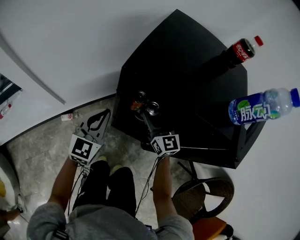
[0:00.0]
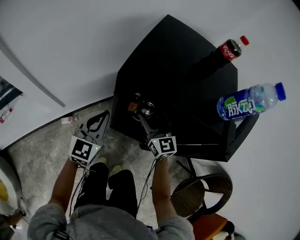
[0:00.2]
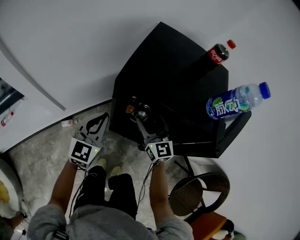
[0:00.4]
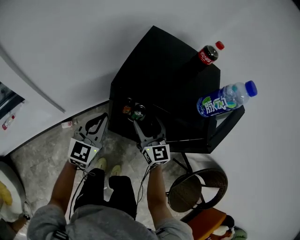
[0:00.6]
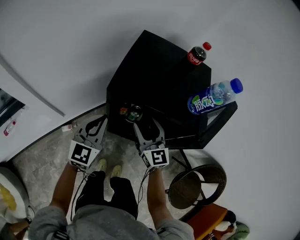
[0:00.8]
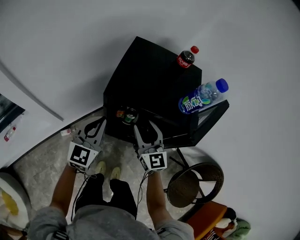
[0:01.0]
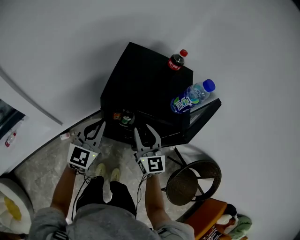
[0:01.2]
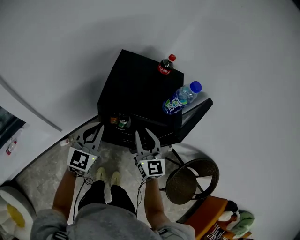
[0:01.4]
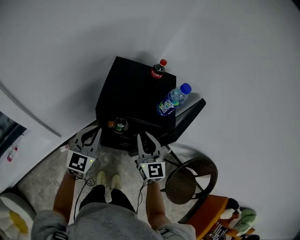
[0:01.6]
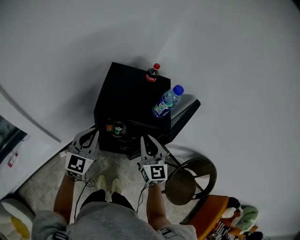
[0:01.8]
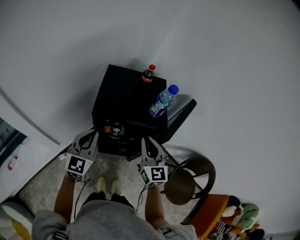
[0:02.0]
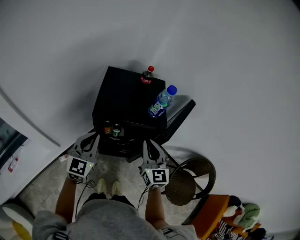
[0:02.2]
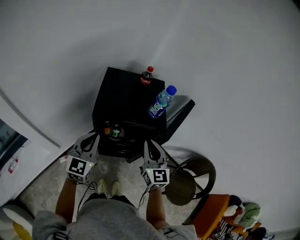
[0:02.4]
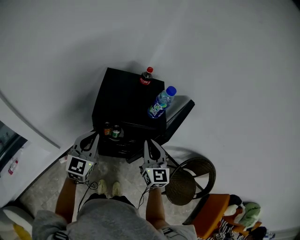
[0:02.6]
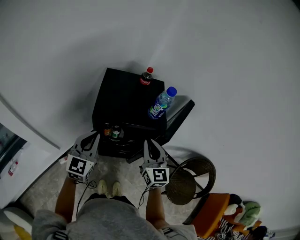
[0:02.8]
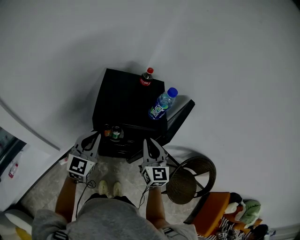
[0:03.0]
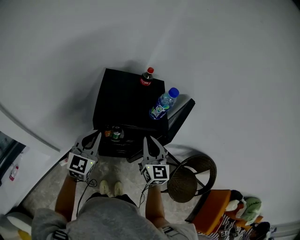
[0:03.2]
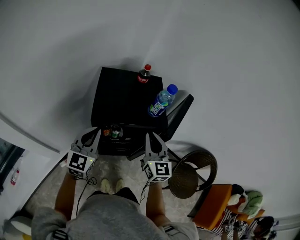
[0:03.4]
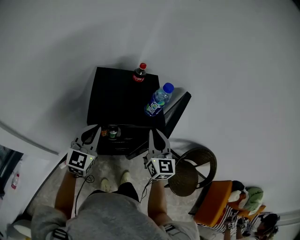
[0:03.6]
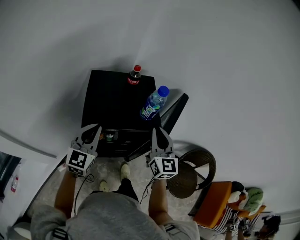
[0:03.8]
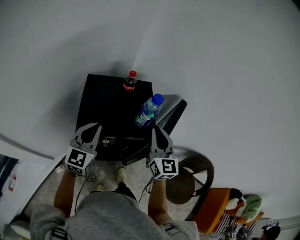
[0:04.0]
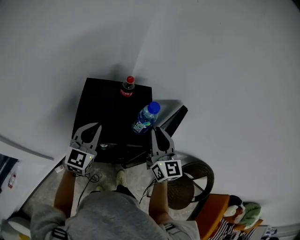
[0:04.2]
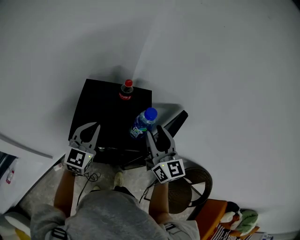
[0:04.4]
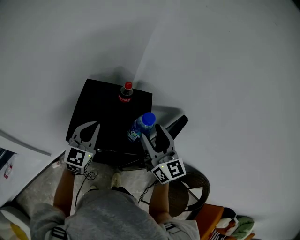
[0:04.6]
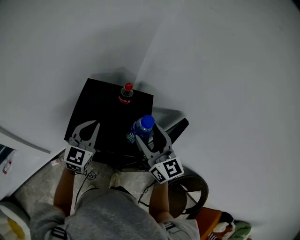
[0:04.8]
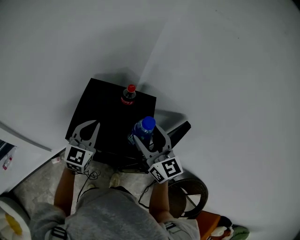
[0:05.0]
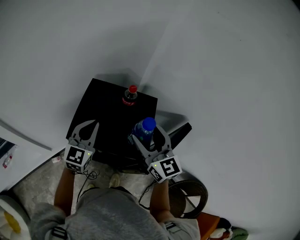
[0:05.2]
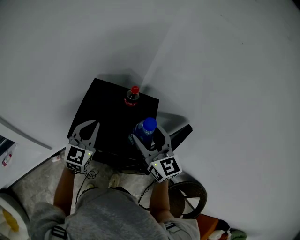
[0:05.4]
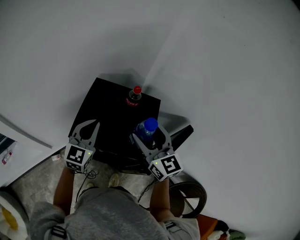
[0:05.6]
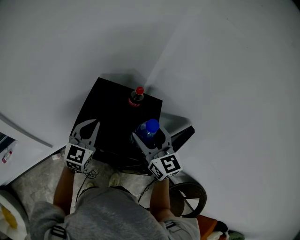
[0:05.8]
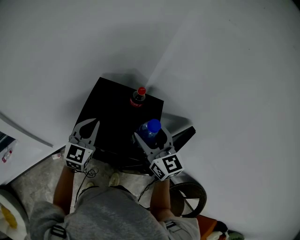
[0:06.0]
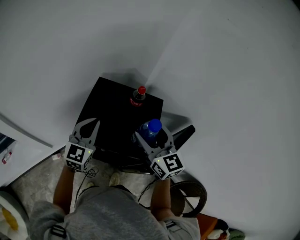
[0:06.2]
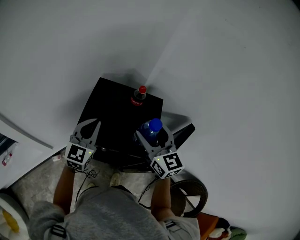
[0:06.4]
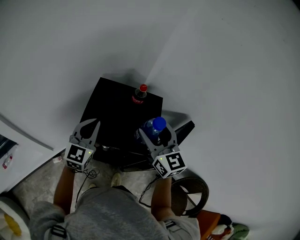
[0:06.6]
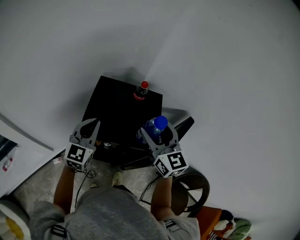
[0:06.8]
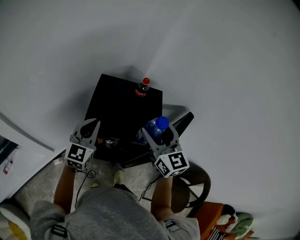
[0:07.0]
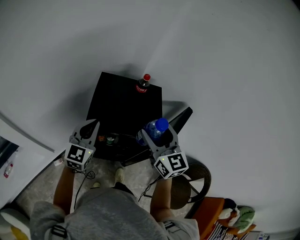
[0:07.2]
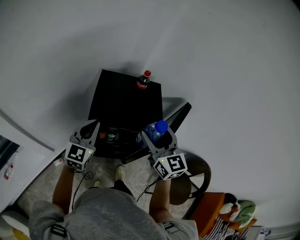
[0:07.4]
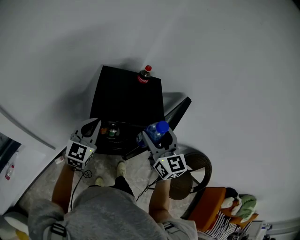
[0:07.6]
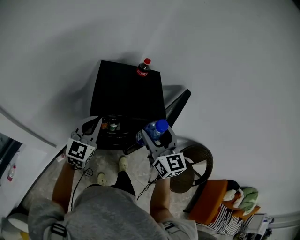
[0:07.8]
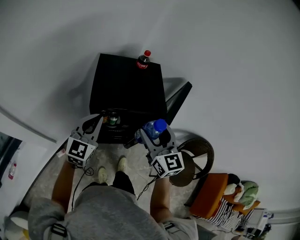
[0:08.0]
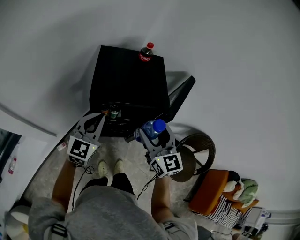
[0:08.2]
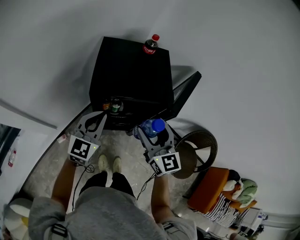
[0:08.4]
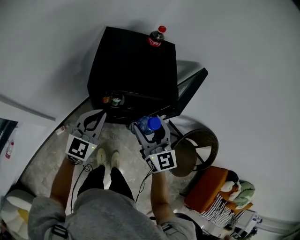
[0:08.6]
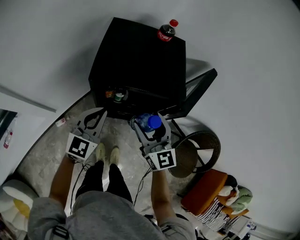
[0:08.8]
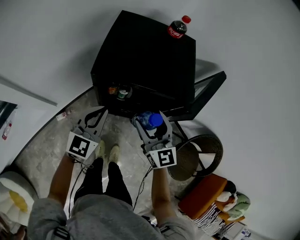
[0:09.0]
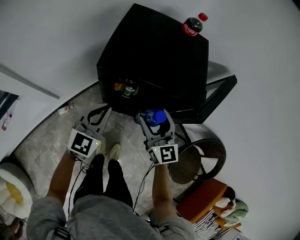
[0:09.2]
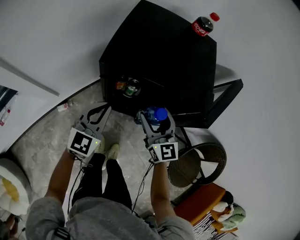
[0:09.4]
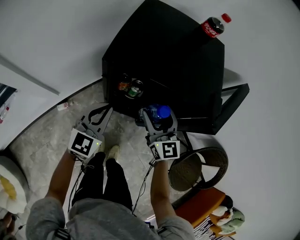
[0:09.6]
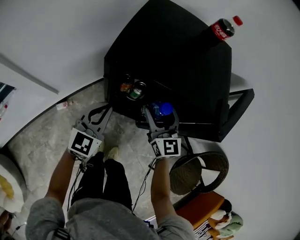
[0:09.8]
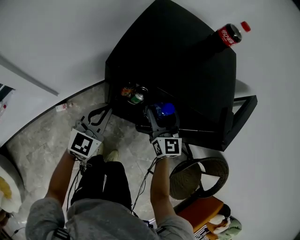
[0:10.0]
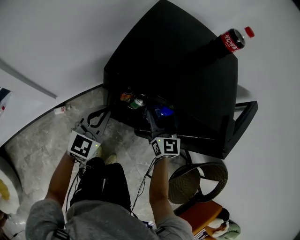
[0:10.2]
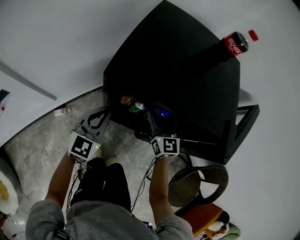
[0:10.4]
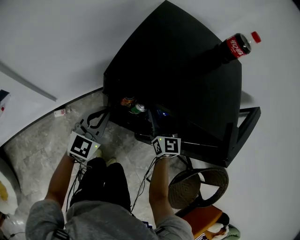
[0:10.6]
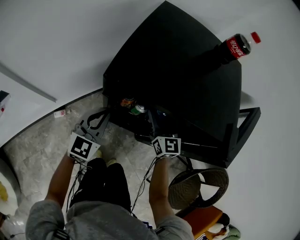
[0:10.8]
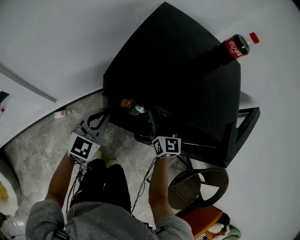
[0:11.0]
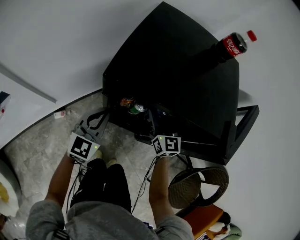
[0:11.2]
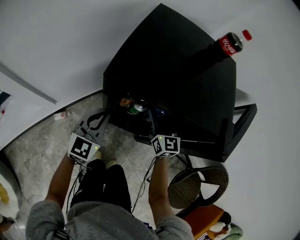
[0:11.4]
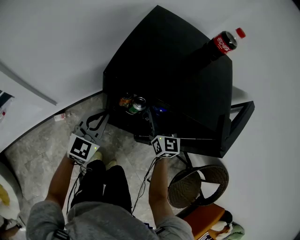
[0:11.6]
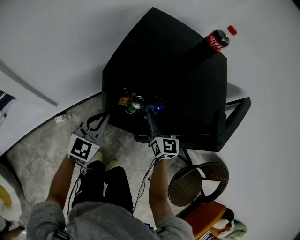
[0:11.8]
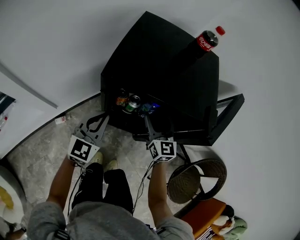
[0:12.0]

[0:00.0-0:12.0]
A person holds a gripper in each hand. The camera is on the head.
0:00.0 to 0:01.6: The right gripper travels upward and backward by about 30 cm, rotates some 20 degrees, and closes; the left gripper moves upward, some 25 cm.
0:01.6 to 0:03.0: The right gripper moves roughly 5 cm.
0:03.0 to 0:04.4: The left gripper heads forward and to the right, covering about 15 cm. Meanwhile the right gripper heads forward, upward and to the right, covering about 20 cm, and opens its fingers.
0:04.4 to 0:06.0: The right gripper travels to the left and forward by approximately 10 cm, turns by some 20 degrees, and opens its fingers.
0:06.0 to 0:07.6: The left gripper is displaced backward and to the left by about 15 cm, while the right gripper shifts roughly 15 cm backward.
0:07.6 to 0:09.0: The left gripper travels downward and backward by about 15 cm. The right gripper heads downward, covering roughly 20 cm.
0:09.0 to 0:10.4: The left gripper goes roughly 15 cm downward; the right gripper shifts some 25 cm downward and forward.
0:10.4 to 0:12.0: The left gripper heads upward, covering some 5 cm. Meanwhile the right gripper shifts by about 5 cm.

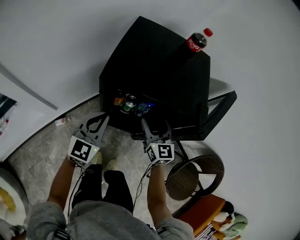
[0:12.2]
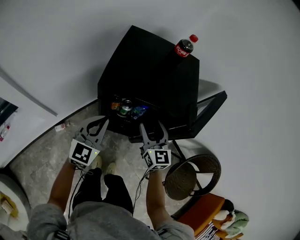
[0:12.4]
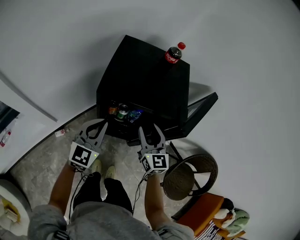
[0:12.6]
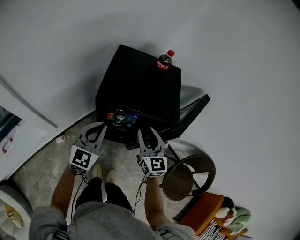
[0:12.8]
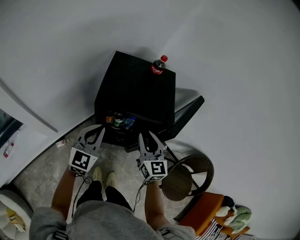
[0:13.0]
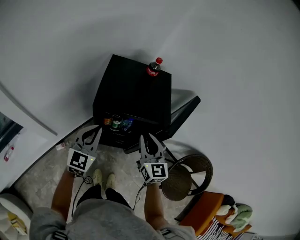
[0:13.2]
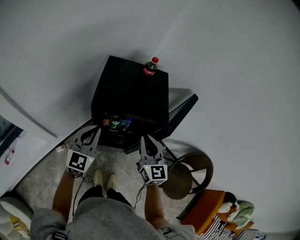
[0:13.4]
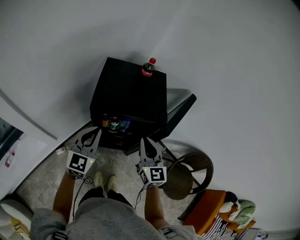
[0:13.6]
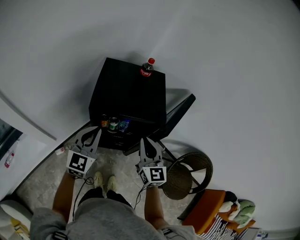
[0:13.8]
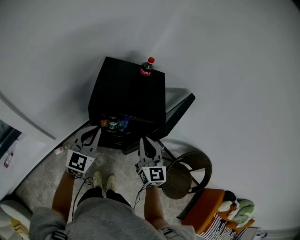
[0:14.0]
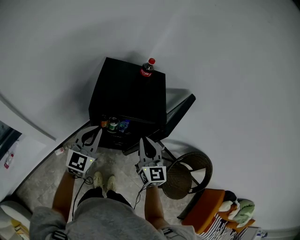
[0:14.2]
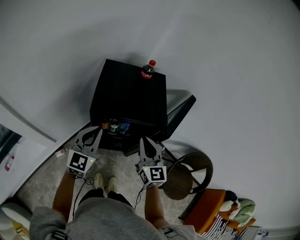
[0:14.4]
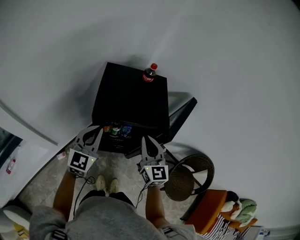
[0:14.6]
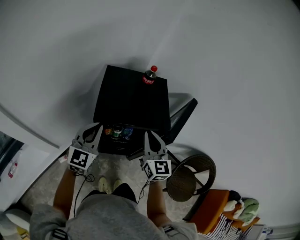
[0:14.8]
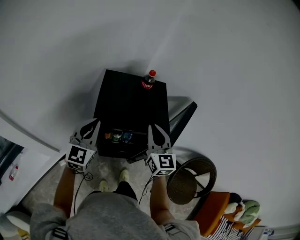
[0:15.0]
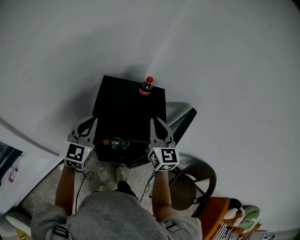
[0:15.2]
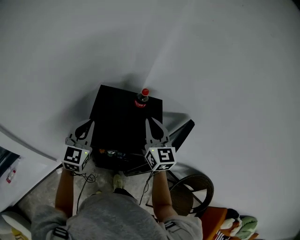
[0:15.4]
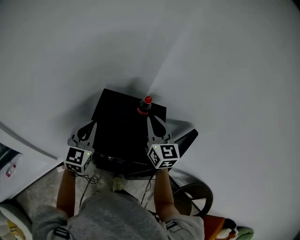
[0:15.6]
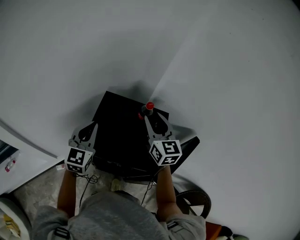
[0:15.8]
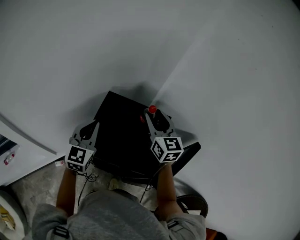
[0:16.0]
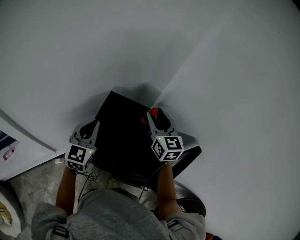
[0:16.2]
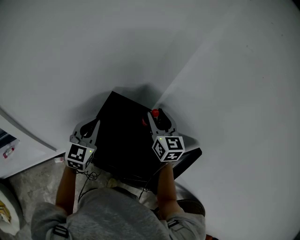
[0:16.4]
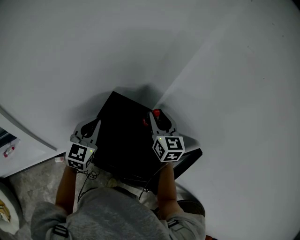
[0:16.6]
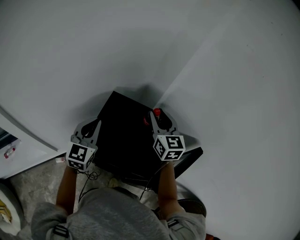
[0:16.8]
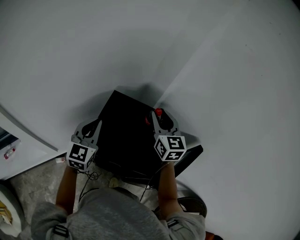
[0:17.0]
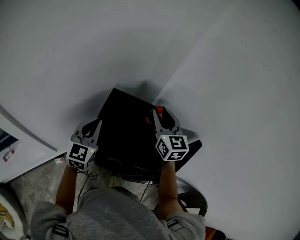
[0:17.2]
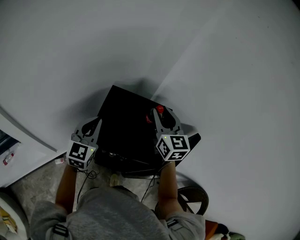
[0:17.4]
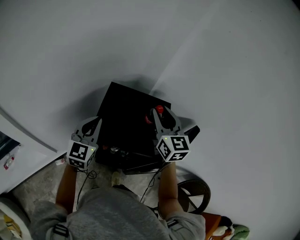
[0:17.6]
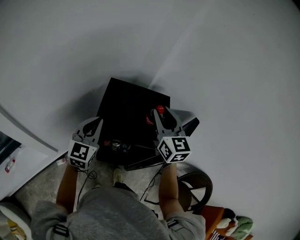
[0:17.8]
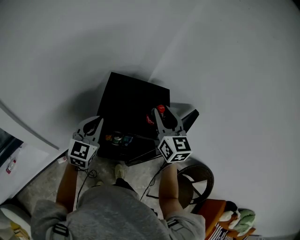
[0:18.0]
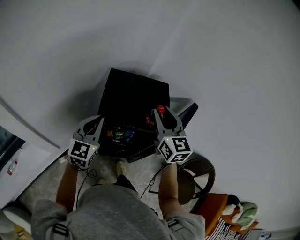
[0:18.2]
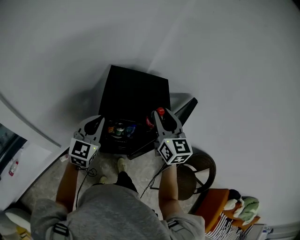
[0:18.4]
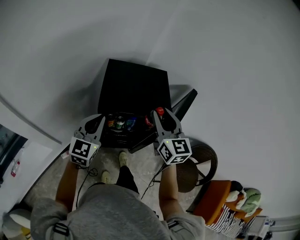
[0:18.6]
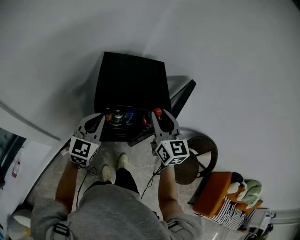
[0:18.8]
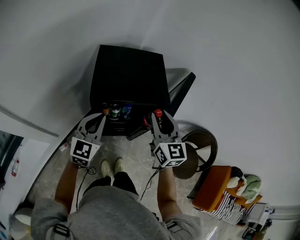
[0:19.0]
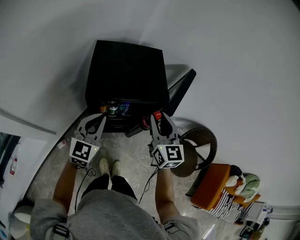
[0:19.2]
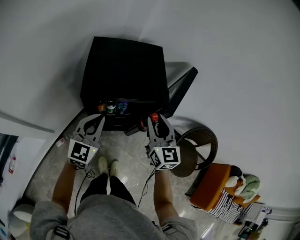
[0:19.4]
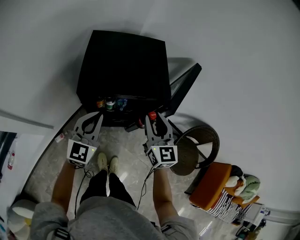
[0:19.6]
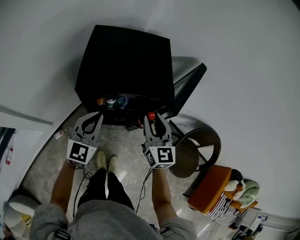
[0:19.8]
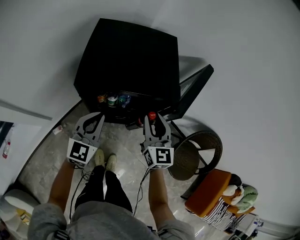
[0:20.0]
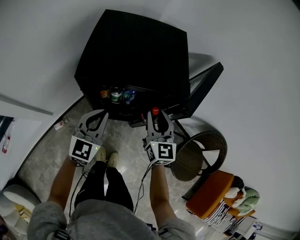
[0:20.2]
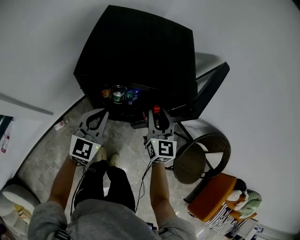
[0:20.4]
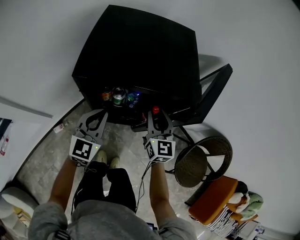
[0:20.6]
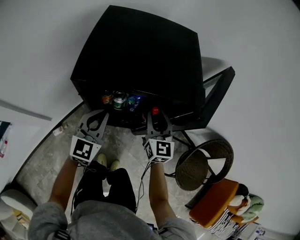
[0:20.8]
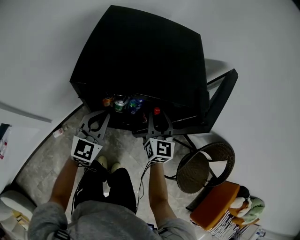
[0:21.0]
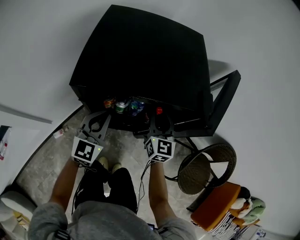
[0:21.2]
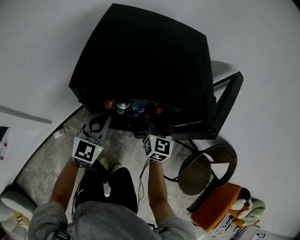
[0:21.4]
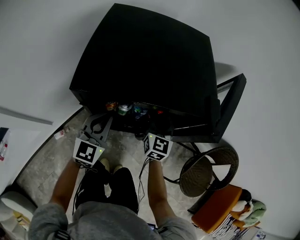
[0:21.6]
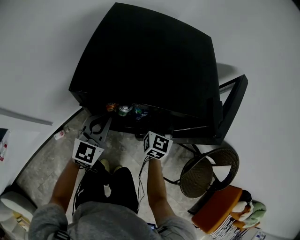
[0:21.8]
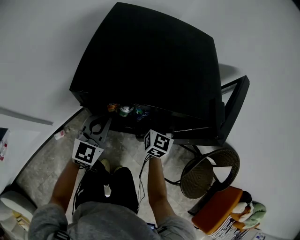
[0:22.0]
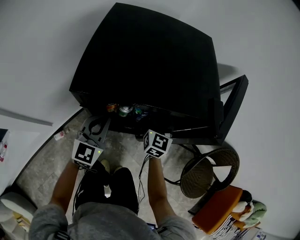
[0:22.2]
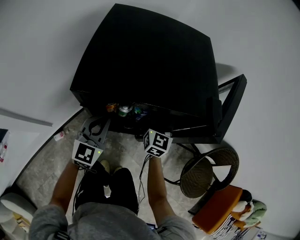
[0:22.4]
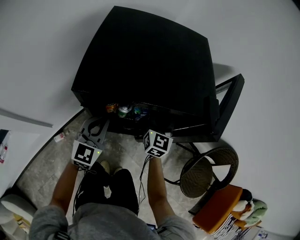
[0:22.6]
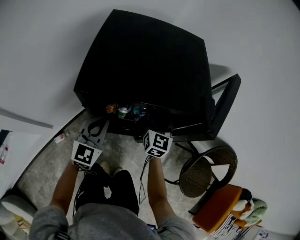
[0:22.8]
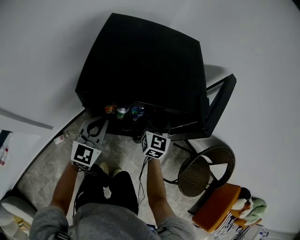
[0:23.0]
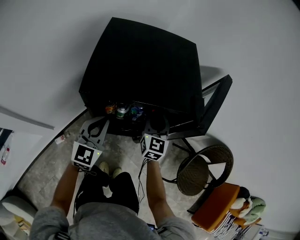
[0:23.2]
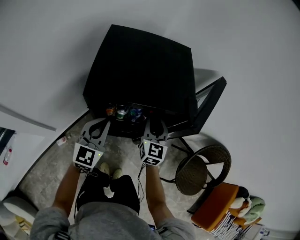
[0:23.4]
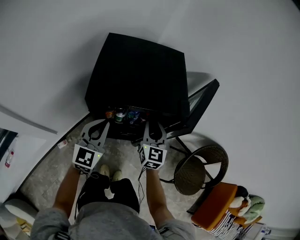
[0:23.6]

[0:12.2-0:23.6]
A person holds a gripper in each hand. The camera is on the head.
0:12.2 to 0:13.6: The right gripper travels upward and backward by about 20 cm, and closes, while the left gripper travels upward by about 15 cm.
0:13.6 to 0:15.0: The right gripper moves forward and upward, about 10 cm. The left gripper moves forward, roughly 10 cm.
0:15.0 to 0:16.4: The right gripper goes about 25 cm forward, changes its angle by roughly 20 degrees, and opens up. The left gripper goes approximately 15 cm forward.
0:16.4 to 0:17.8: The right gripper goes about 15 cm backward; the left gripper heads backward, covering some 10 cm.
0:17.8 to 0:19.4: The left gripper shifts about 15 cm backward, downward and to the right. The right gripper goes approximately 20 cm backward and downward.
0:19.4 to 0:20.8: Both grippers travel together downward, some 20 cm.
0:20.8 to 0:22.2: The left gripper is displaced downward by some 5 cm. The right gripper travels forward and downward by approximately 10 cm.
0:22.2 to 0:23.6: The right gripper is displaced upward and backward by about 15 cm. The left gripper travels upward by approximately 15 cm.
